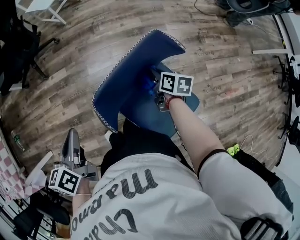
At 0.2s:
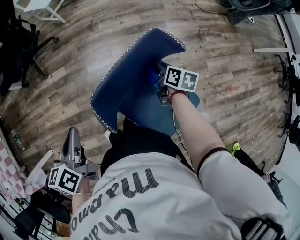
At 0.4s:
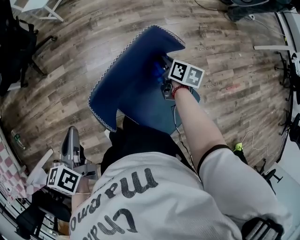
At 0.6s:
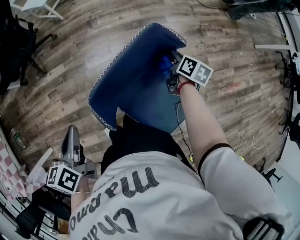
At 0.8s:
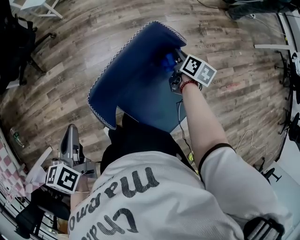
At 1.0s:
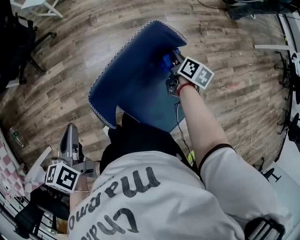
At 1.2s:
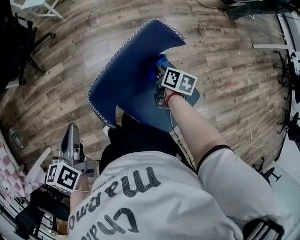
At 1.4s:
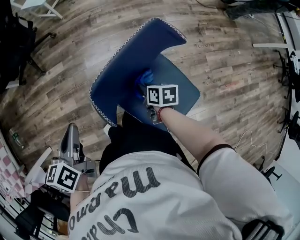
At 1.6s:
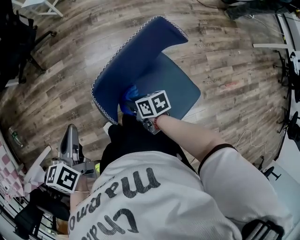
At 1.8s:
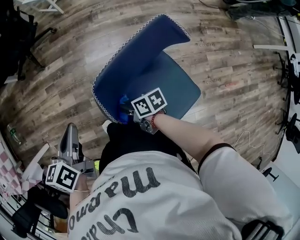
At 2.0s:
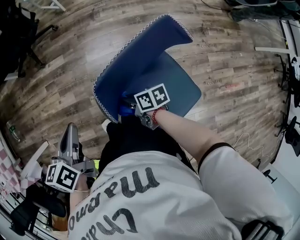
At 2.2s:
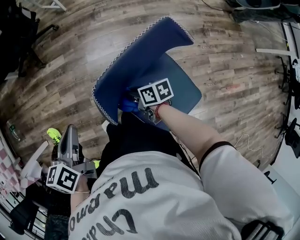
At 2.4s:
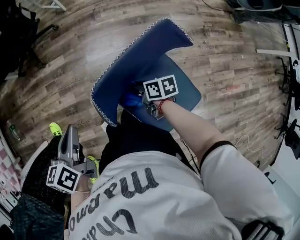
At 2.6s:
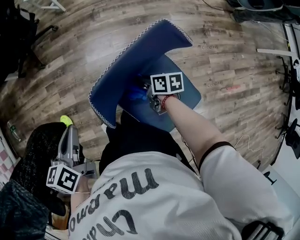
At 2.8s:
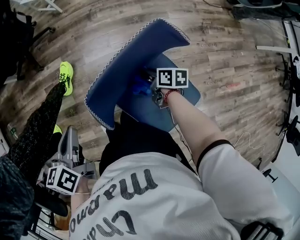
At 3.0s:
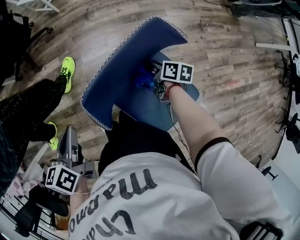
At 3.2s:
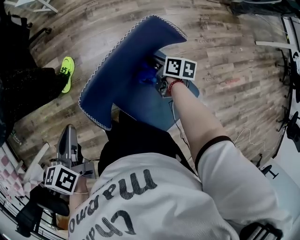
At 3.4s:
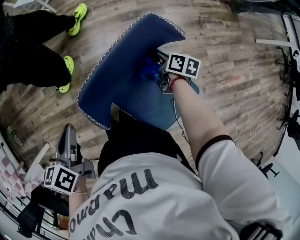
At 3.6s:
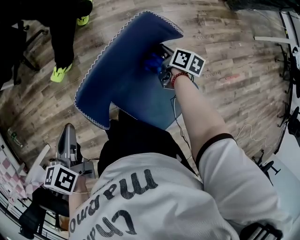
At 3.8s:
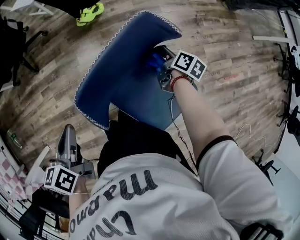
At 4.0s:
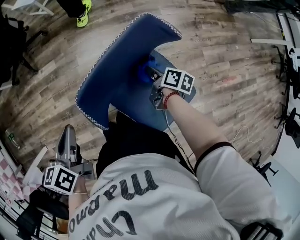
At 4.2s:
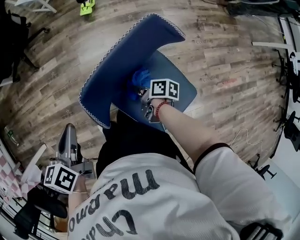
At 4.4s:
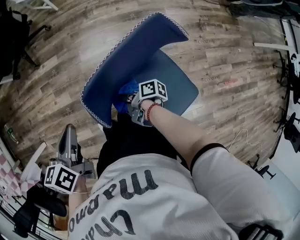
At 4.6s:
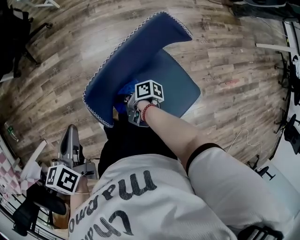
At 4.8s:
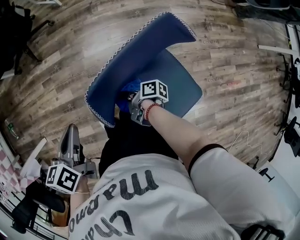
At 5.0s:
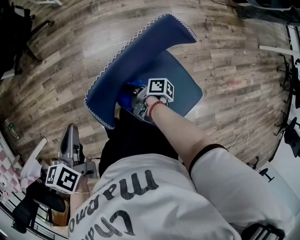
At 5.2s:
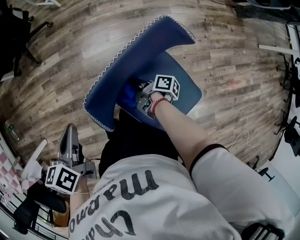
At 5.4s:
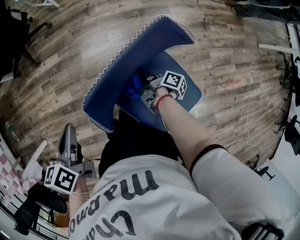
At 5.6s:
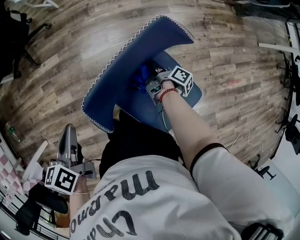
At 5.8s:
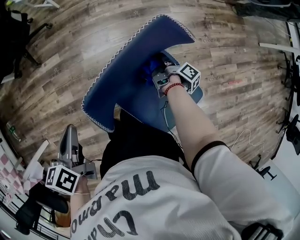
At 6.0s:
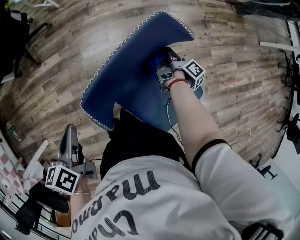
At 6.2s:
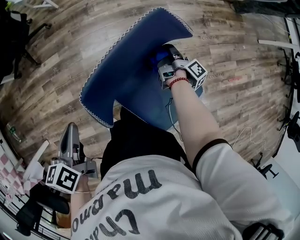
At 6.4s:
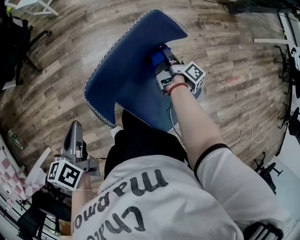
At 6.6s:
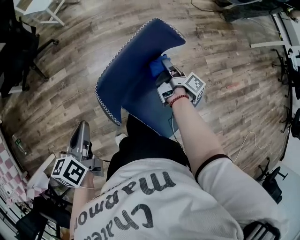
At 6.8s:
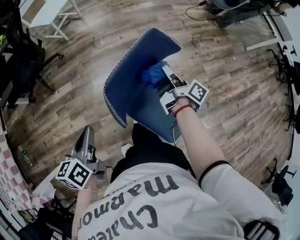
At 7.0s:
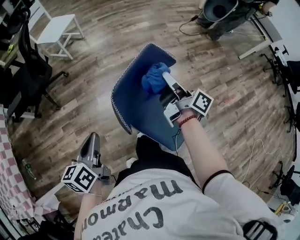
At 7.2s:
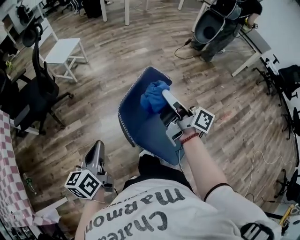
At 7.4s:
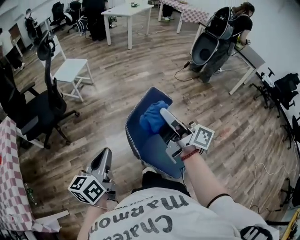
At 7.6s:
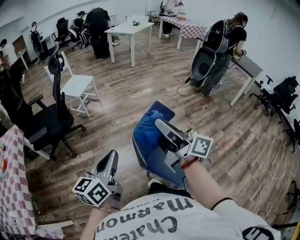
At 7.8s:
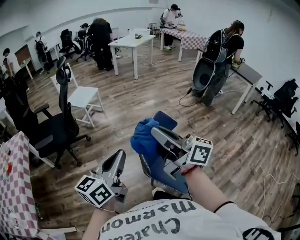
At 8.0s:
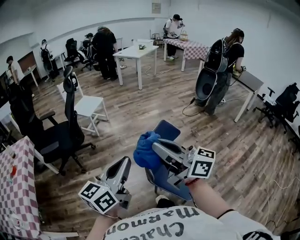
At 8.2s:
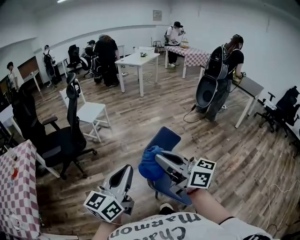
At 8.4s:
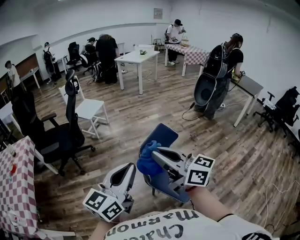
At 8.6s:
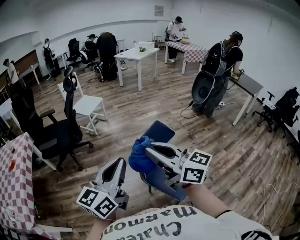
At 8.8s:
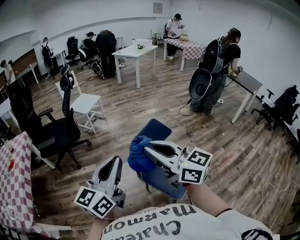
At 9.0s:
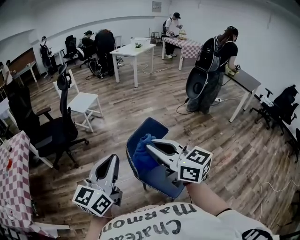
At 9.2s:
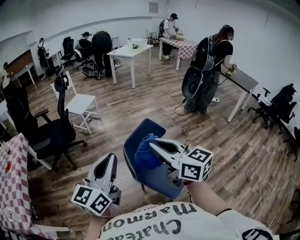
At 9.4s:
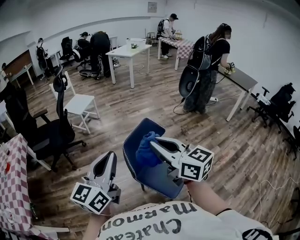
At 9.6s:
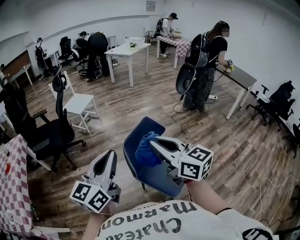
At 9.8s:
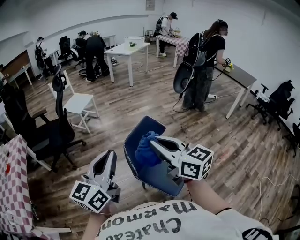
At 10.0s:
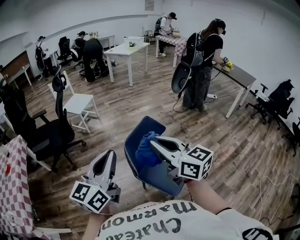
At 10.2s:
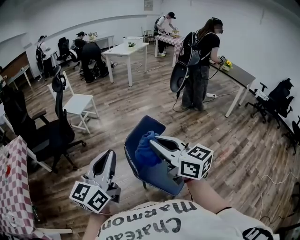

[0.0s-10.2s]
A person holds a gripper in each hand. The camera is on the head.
0.0s to 1.4s: The right gripper is displaced backward by some 10 cm, and moves approximately 10 cm to the right and comes back.
1.4s to 3.0s: The right gripper shifts about 10 cm to the right and forward.
3.0s to 4.4s: The right gripper changes place by about 20 cm, and rotates about 40 degrees.
4.4s to 5.8s: The right gripper changes place by roughly 25 cm, and turns by about 50 degrees.
5.8s to 7.2s: The right gripper goes about 40 cm upward, and tilts its fingers roughly 50 degrees upward, while the left gripper heads upward and backward, covering approximately 15 cm, and swivels about 30 degrees.
7.2s to 8.8s: The left gripper moves upward and backward, some 25 cm, and rotates some 30 degrees, while the right gripper shifts some 30 cm upward, backward and to the left, and twists some 50 degrees counterclockwise, seen from behind.
8.8s to 10.2s: The right gripper shifts roughly 5 cm to the right.

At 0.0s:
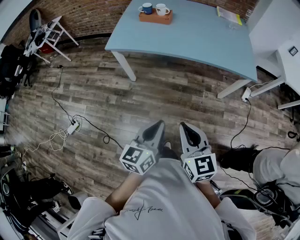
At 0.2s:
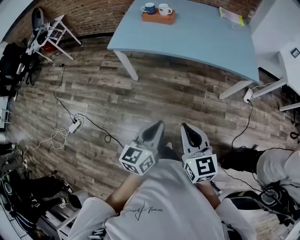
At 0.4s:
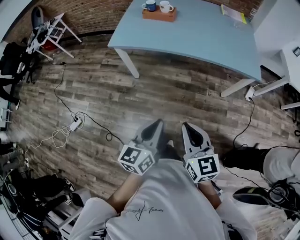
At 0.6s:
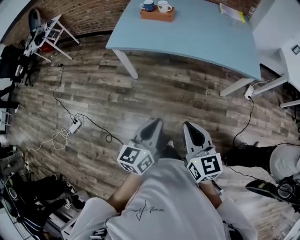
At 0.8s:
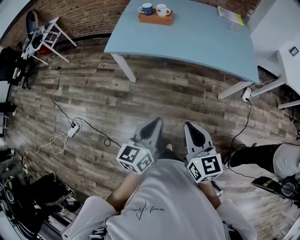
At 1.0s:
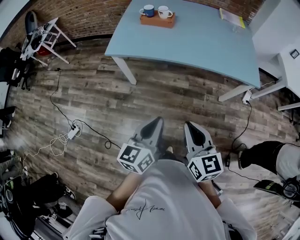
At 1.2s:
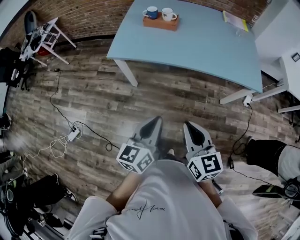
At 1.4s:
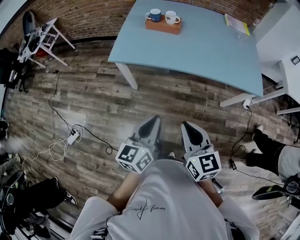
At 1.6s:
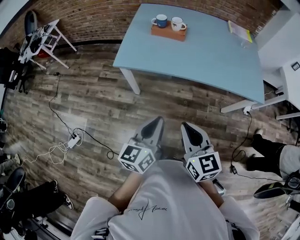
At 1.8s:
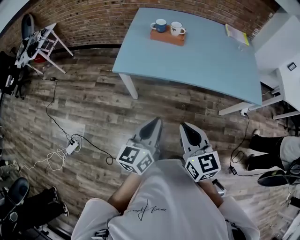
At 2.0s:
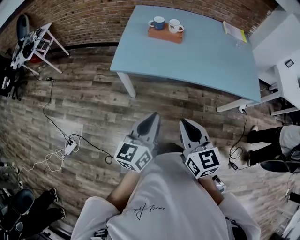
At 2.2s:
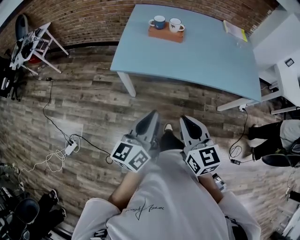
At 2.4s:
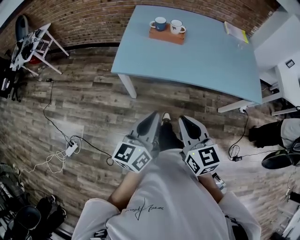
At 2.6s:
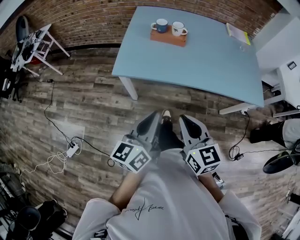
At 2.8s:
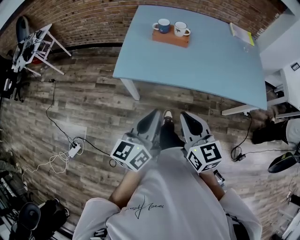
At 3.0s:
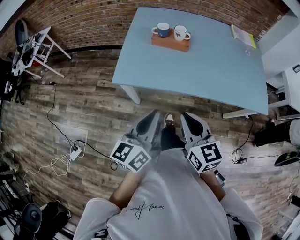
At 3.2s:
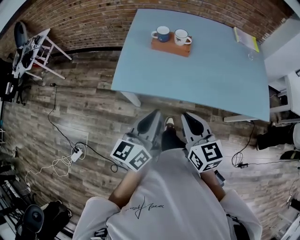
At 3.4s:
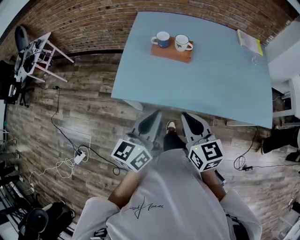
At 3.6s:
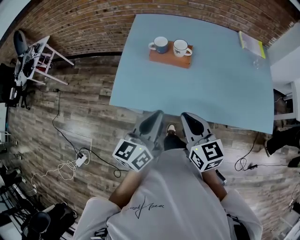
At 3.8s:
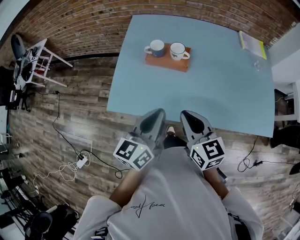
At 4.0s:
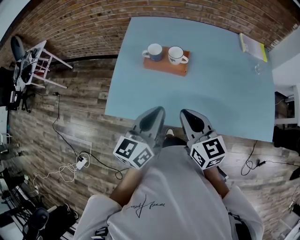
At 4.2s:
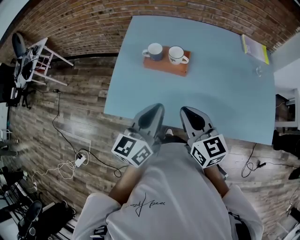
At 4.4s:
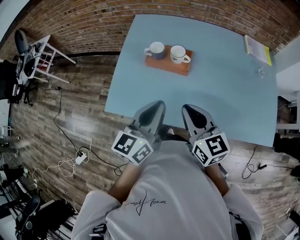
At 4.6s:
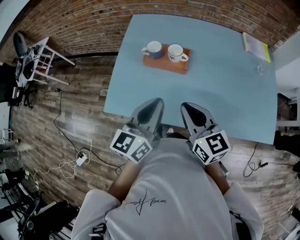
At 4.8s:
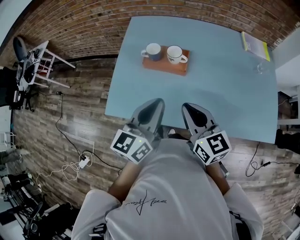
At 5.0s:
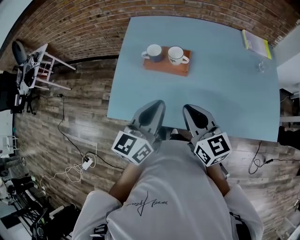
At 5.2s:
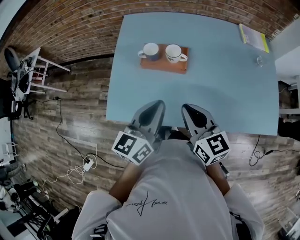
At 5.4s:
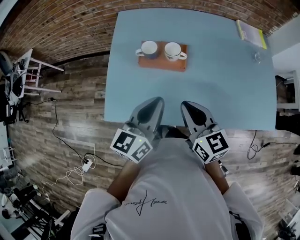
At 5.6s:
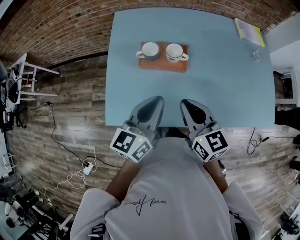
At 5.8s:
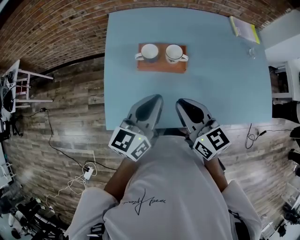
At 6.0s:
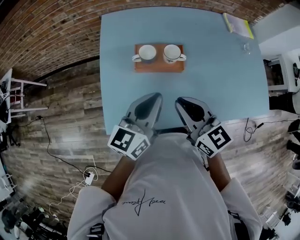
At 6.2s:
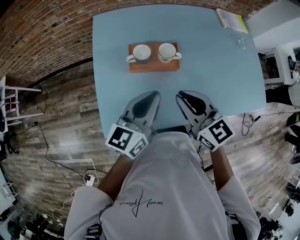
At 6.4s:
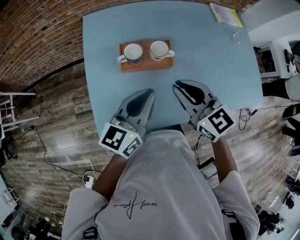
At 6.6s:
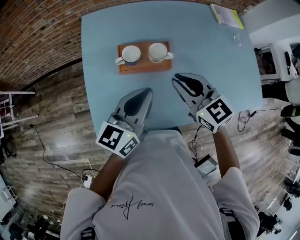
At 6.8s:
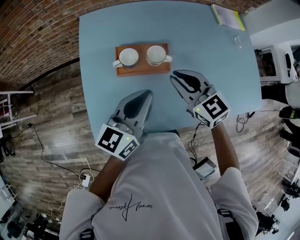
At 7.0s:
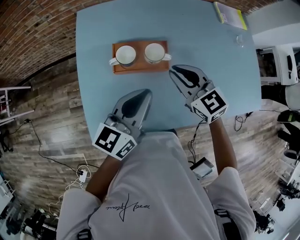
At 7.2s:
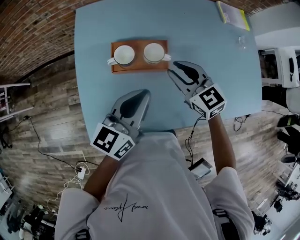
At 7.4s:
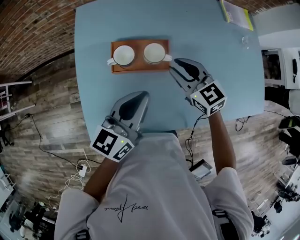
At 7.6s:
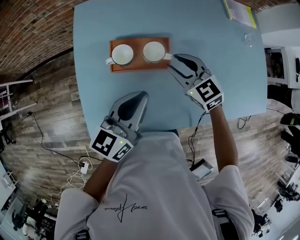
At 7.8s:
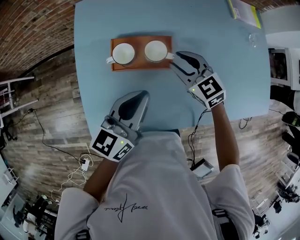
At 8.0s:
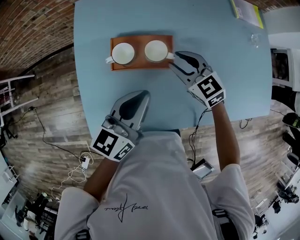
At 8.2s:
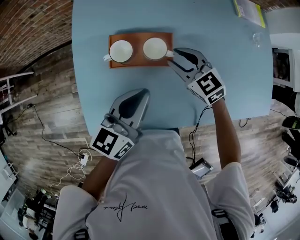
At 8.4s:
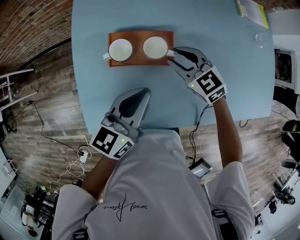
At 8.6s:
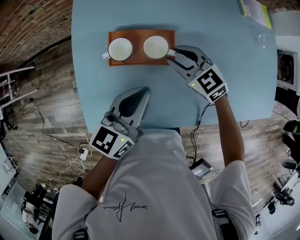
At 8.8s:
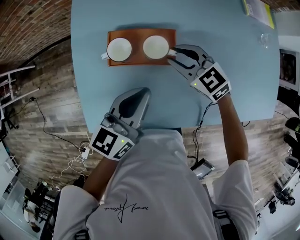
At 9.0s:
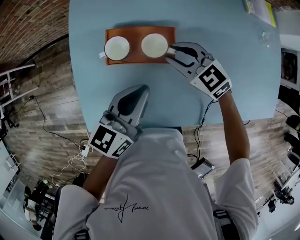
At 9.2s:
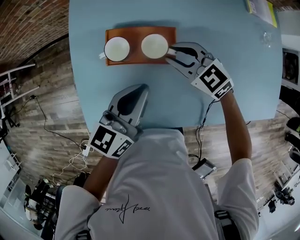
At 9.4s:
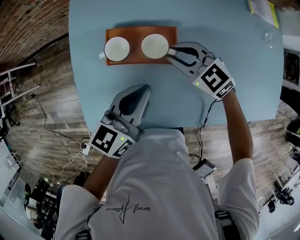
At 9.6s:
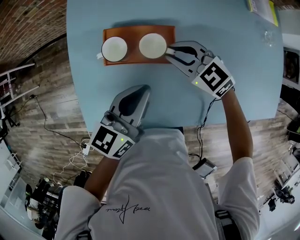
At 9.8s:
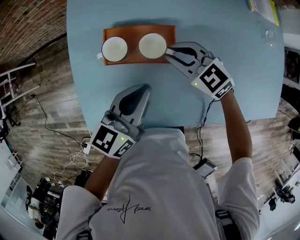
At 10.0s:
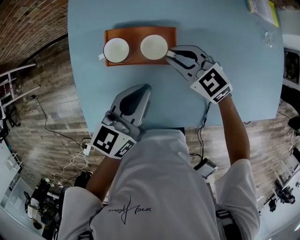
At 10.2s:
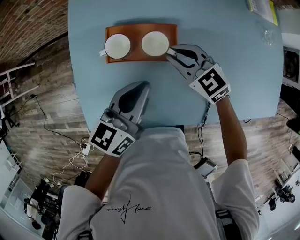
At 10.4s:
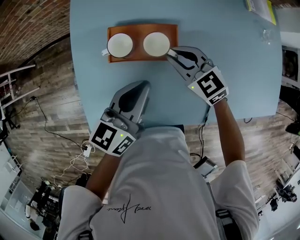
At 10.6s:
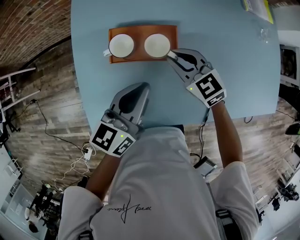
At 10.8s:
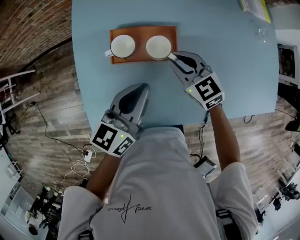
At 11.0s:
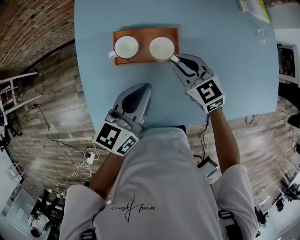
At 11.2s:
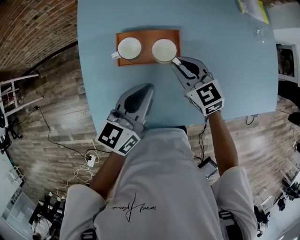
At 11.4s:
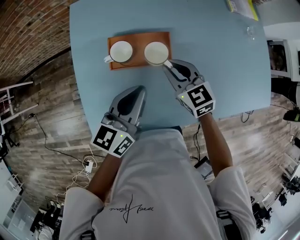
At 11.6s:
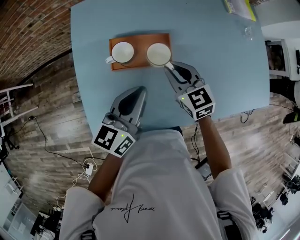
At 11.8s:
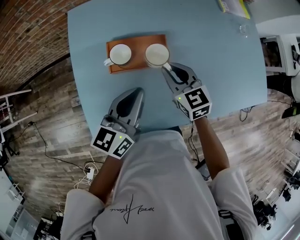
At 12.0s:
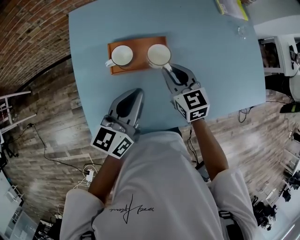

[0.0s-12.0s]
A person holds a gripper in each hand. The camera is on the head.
0.0s to 1.6s: The grippers both shift forward and to the left by some 20 cm.
1.6s to 3.0s: Both grippers travel together forward, approximately 15 cm.
3.0s to 4.4s: The two grippers go some 20 cm forward.
4.4s to 6.0s: The right gripper goes about 10 cm to the left and forward. The left gripper goes roughly 10 cm forward and to the left.
6.0s to 7.6s: The left gripper heads forward, covering about 5 cm. Meanwhile the right gripper travels forward, downward and to the right by roughly 20 cm, changes its angle by roughly 20 degrees, and opens.
7.6s to 10.4s: The grippers make only small movements.
10.4s to 12.0s: The right gripper rotates some 30 degrees.

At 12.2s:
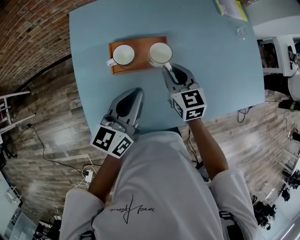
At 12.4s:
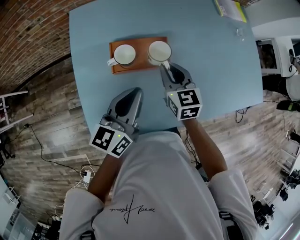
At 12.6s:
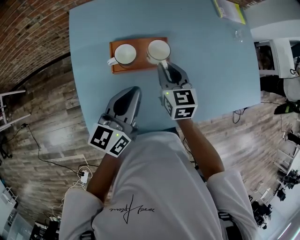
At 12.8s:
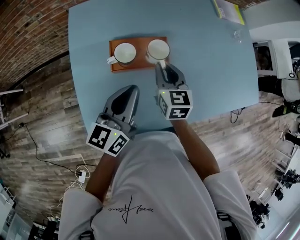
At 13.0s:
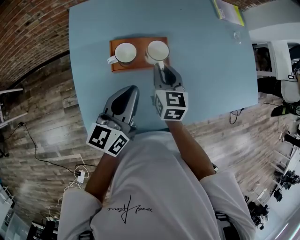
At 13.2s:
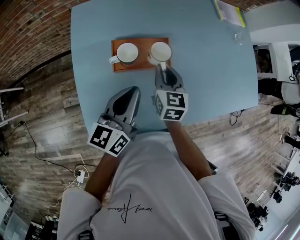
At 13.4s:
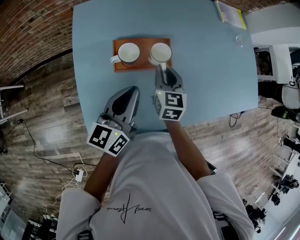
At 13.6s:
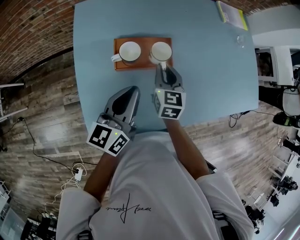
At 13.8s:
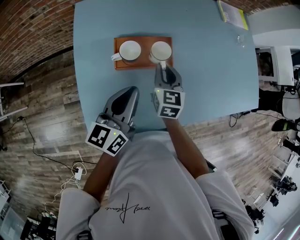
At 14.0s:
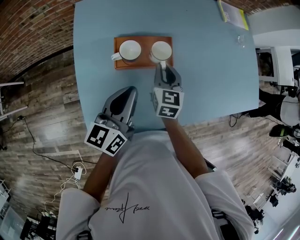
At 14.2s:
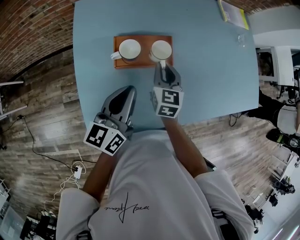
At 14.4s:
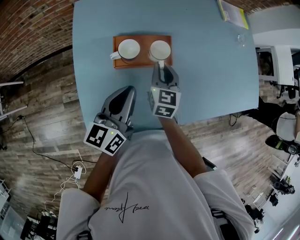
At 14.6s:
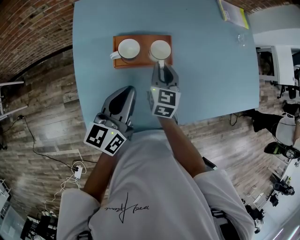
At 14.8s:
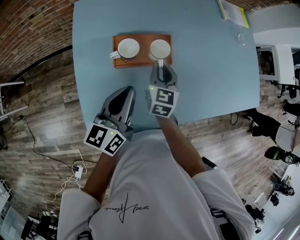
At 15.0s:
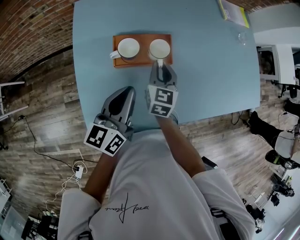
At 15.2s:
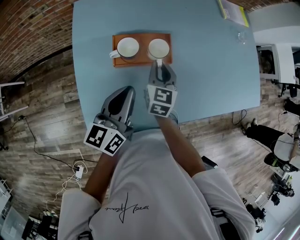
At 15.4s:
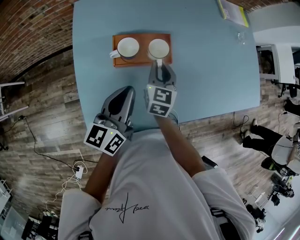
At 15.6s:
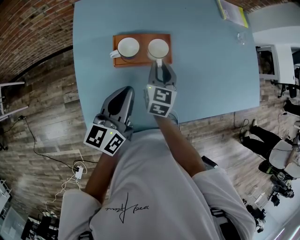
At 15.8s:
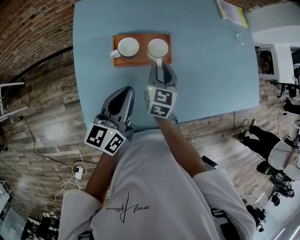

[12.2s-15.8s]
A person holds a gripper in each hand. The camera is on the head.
12.2s to 14.0s: The grippers make only small movements.
14.0s to 15.8s: The grippers move only a little.
